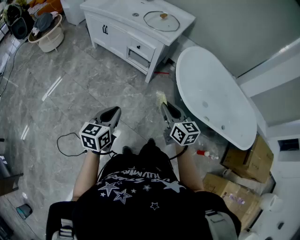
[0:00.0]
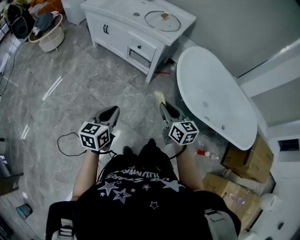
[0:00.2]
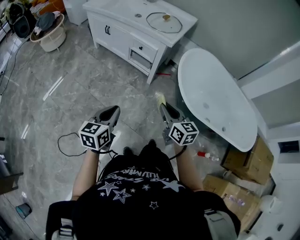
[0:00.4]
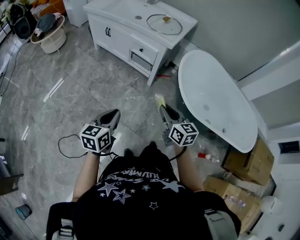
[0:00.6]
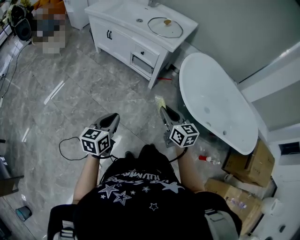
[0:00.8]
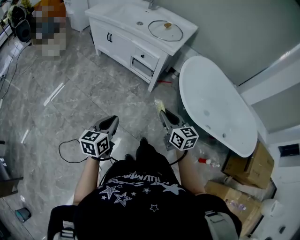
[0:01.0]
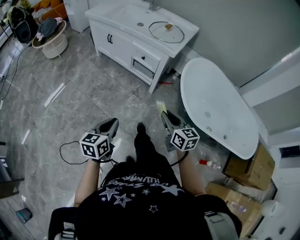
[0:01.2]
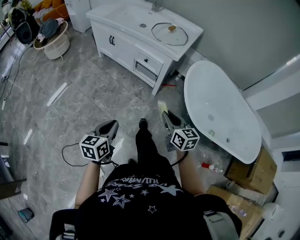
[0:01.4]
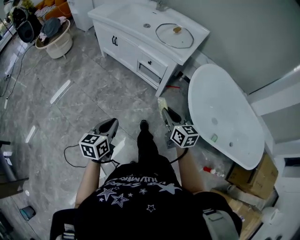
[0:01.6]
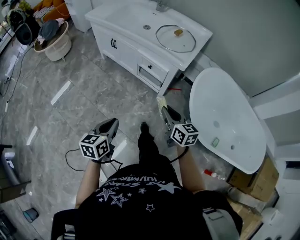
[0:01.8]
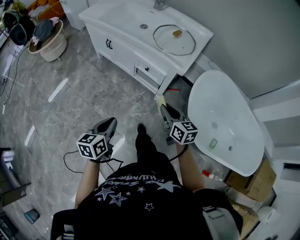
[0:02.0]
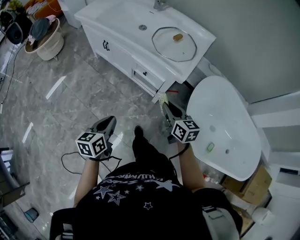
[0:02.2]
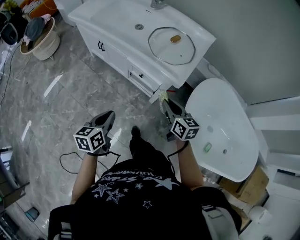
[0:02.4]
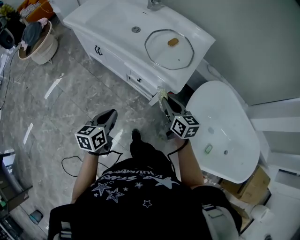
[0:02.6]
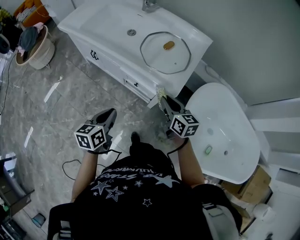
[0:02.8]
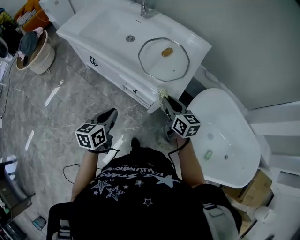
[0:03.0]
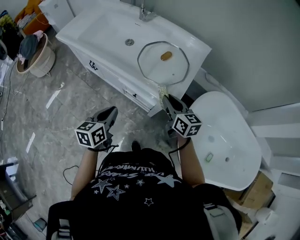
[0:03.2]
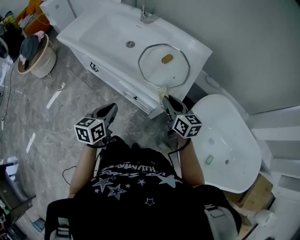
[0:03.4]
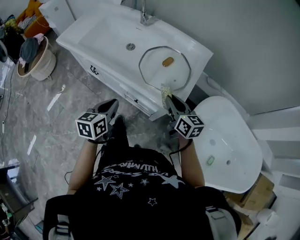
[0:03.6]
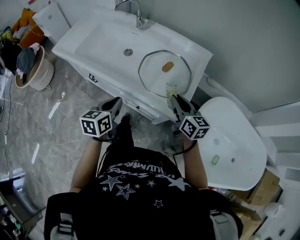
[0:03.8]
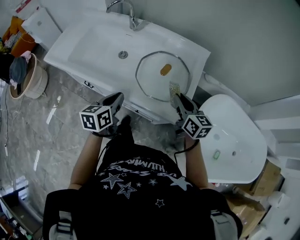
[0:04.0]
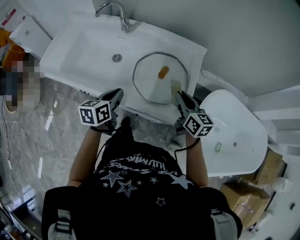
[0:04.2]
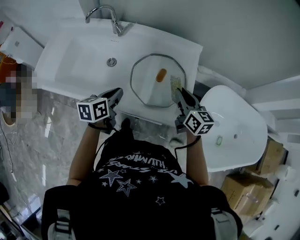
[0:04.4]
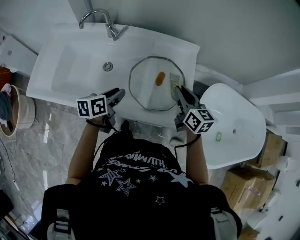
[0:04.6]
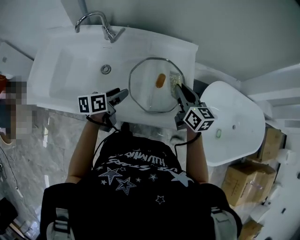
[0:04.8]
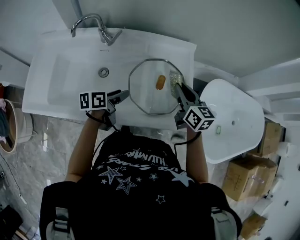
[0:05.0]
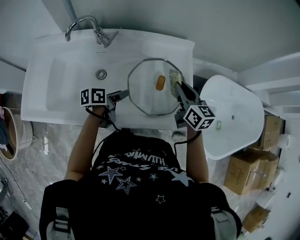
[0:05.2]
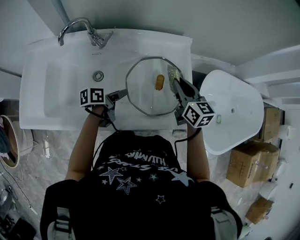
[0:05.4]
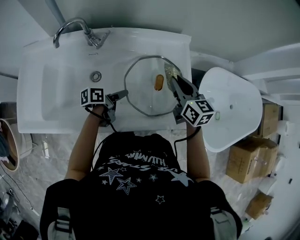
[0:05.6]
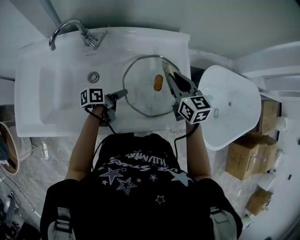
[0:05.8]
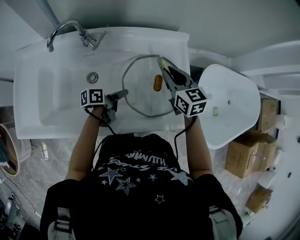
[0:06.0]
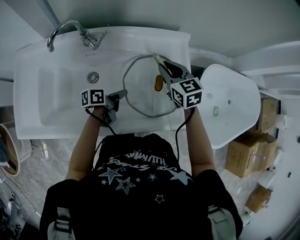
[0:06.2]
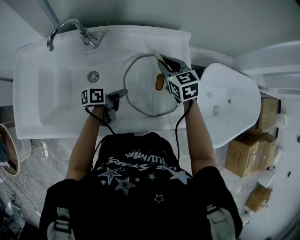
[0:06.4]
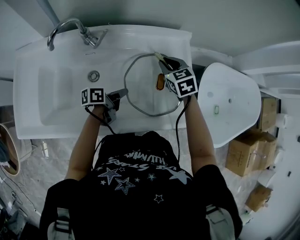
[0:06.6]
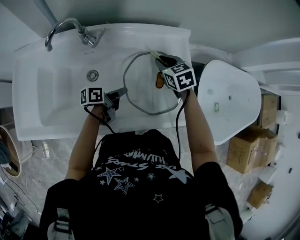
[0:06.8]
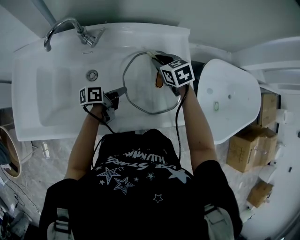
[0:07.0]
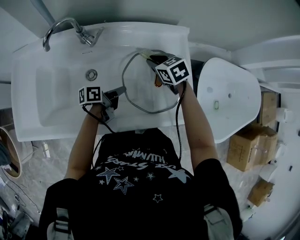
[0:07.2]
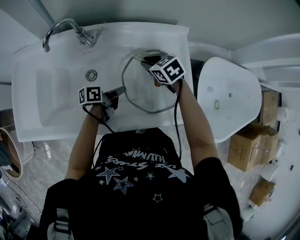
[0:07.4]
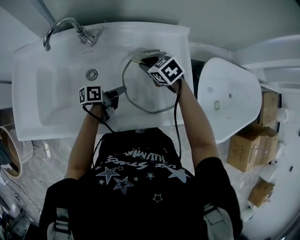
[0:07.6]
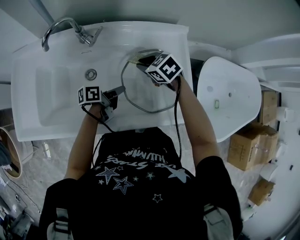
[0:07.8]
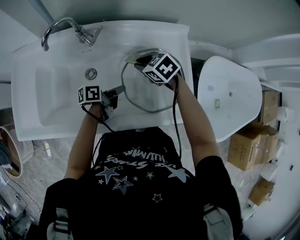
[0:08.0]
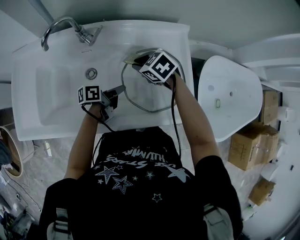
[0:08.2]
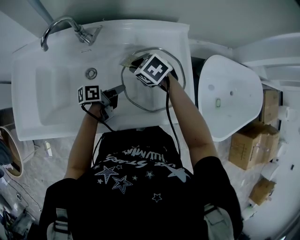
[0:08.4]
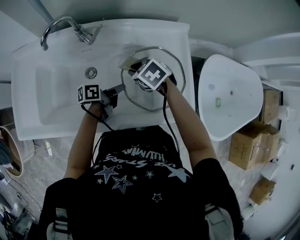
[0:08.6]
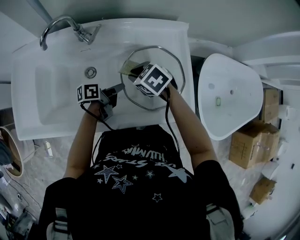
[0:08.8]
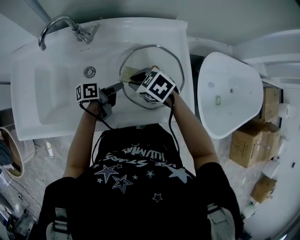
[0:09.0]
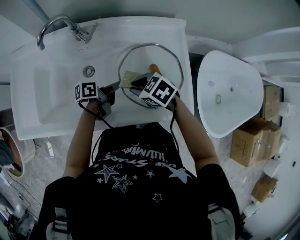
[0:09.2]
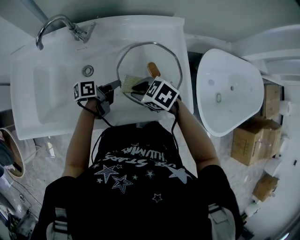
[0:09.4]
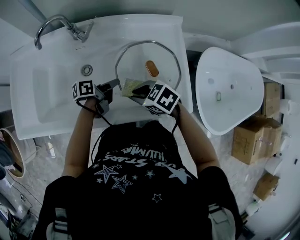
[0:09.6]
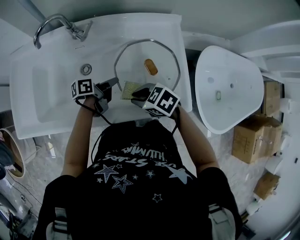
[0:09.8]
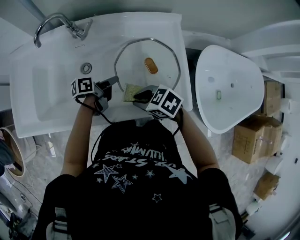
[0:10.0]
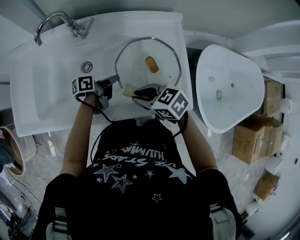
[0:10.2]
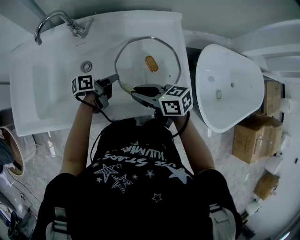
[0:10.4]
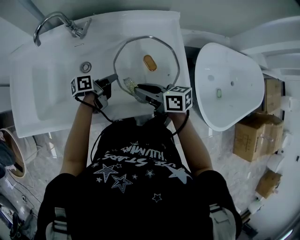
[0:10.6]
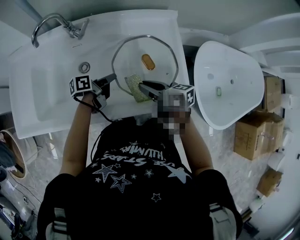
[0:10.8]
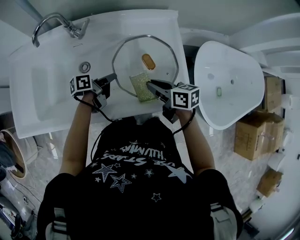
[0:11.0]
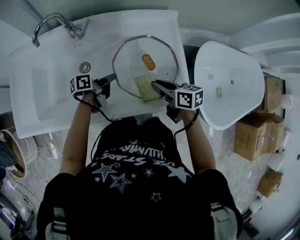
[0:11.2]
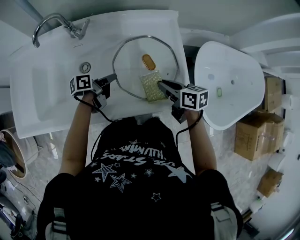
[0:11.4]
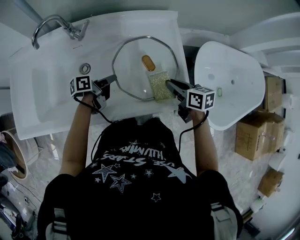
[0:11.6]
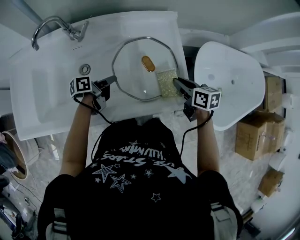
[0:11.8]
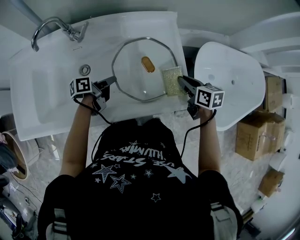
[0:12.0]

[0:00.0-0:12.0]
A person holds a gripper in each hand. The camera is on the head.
0:00.0 to 0:01.6: The left gripper goes roughly 15 cm forward and to the left. Meanwhile the right gripper heads forward, covering roughly 15 cm.
0:01.6 to 0:03.0: Both grippers move forward, some 40 cm.
0:03.0 to 0:04.4: The left gripper is displaced forward by approximately 30 cm, and rotates roughly 20 degrees. The right gripper shifts some 15 cm forward, and turns by about 20 degrees.
0:04.4 to 0:06.0: The right gripper heads forward and to the left, covering about 15 cm, and swivels approximately 20 degrees. Meanwhile the left gripper heads downward and forward, covering about 15 cm, swivels about 40 degrees, and opens its fingers.
0:06.0 to 0:07.6: The right gripper heads downward and to the left, covering roughly 10 cm, and changes its angle by roughly 40 degrees, while the left gripper closes up.
0:07.6 to 0:09.0: The right gripper moves roughly 10 cm.
0:09.0 to 0:10.4: The right gripper moves some 10 cm, and points its fingers about 30 degrees further upward.
0:10.4 to 0:12.0: The right gripper shifts by roughly 25 cm, and changes its angle by about 30 degrees.

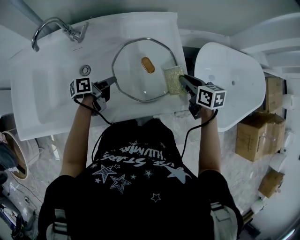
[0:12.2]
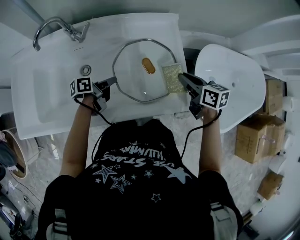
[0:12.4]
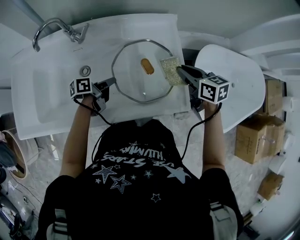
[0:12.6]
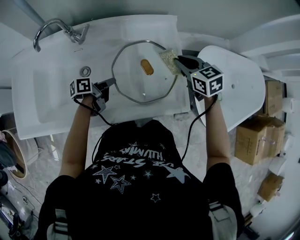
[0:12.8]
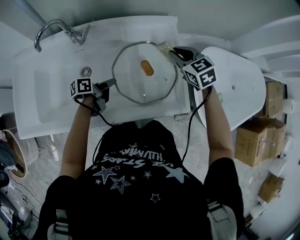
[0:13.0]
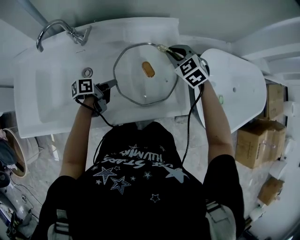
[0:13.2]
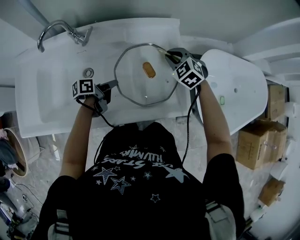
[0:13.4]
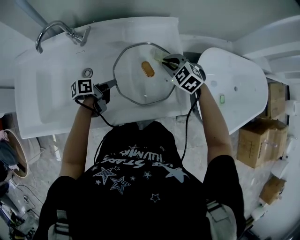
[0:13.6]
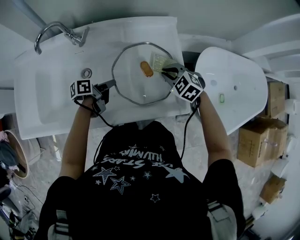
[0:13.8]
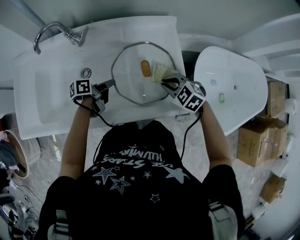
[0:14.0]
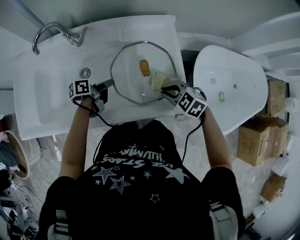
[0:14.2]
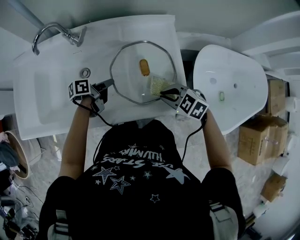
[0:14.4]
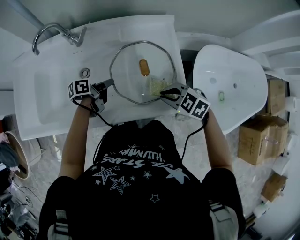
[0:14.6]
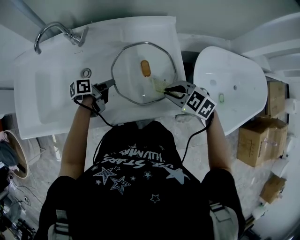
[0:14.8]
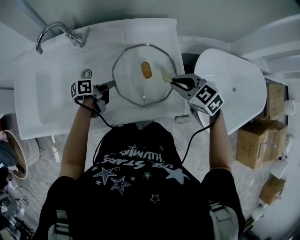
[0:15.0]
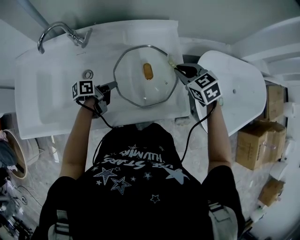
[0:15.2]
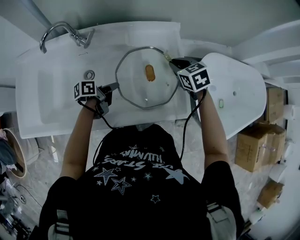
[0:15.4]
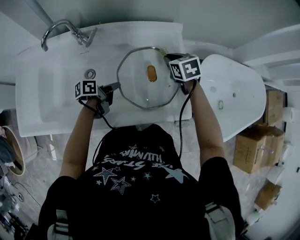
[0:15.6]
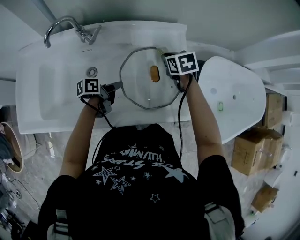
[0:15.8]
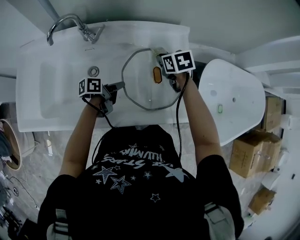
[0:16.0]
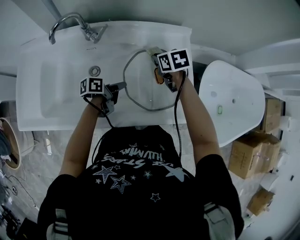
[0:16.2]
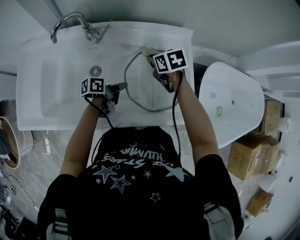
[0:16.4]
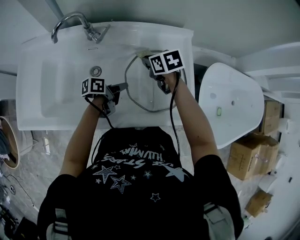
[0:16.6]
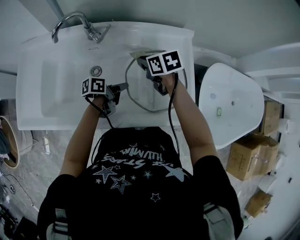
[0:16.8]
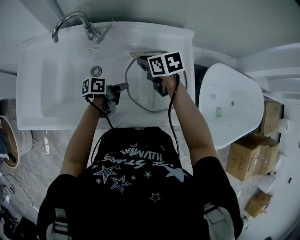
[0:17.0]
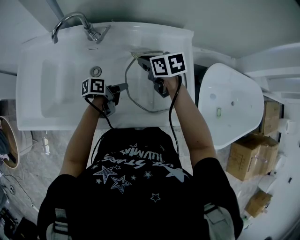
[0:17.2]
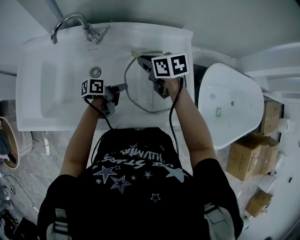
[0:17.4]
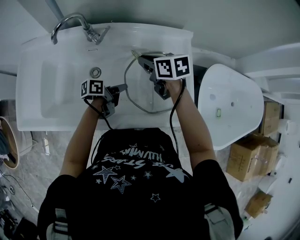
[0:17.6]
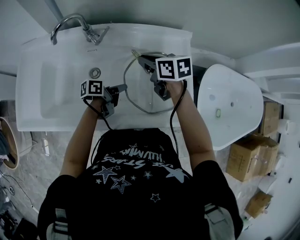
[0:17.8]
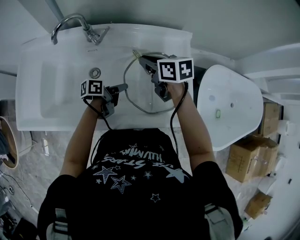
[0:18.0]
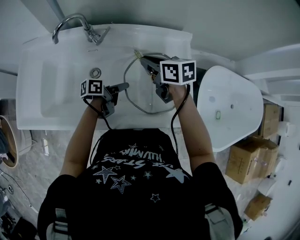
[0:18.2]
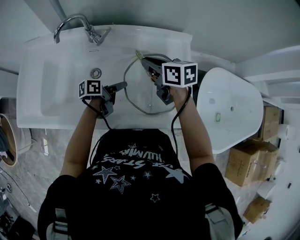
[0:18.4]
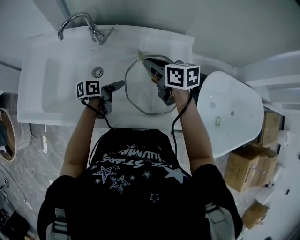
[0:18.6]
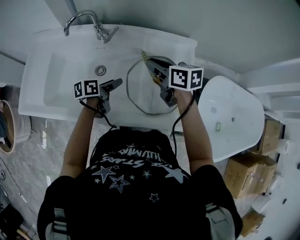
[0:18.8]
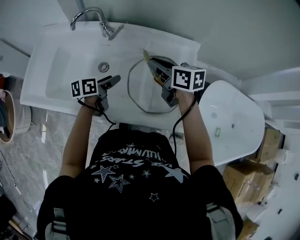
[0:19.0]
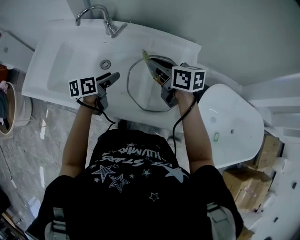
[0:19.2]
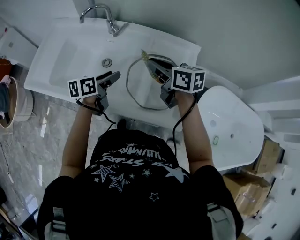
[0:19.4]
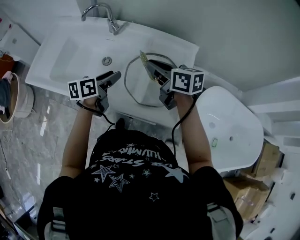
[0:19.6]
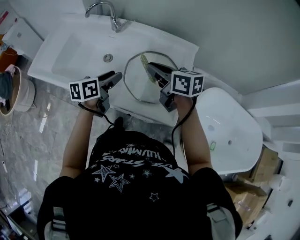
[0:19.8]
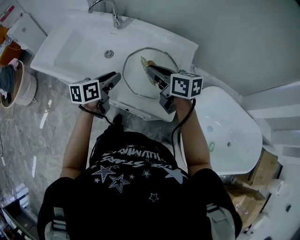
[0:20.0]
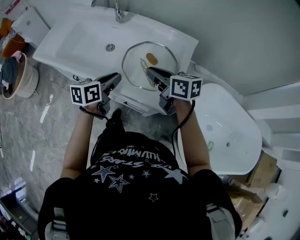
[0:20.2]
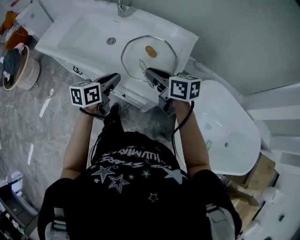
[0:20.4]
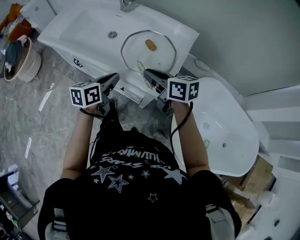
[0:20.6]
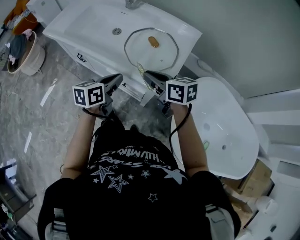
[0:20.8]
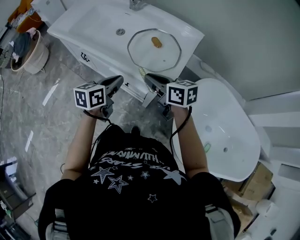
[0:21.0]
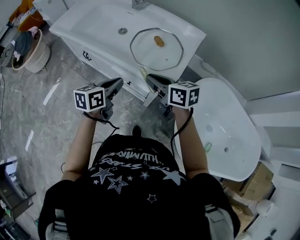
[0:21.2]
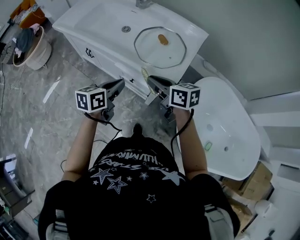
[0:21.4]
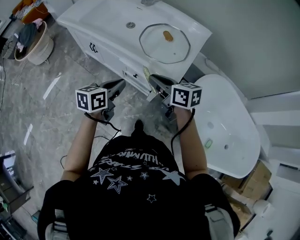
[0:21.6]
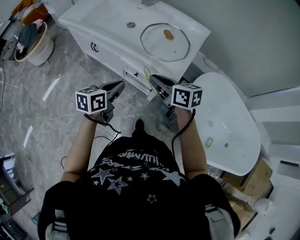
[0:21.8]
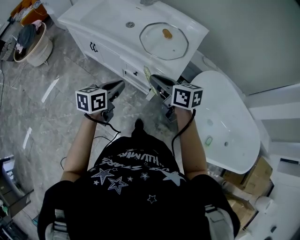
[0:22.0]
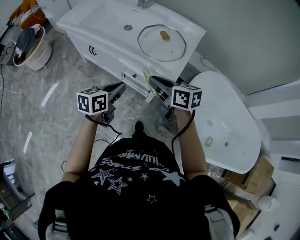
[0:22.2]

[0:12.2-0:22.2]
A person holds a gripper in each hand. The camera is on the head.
0:12.2 to 0:13.6: The right gripper travels to the left and forward by roughly 10 cm, and twists roughly 60 degrees counterclockwise, seen from behind.
0:13.6 to 0:15.0: The right gripper changes place by approximately 10 cm.
0:15.0 to 0:16.4: The right gripper shifts approximately 20 cm to the left and forward, and swivels approximately 30 degrees.
0:16.4 to 0:18.0: The right gripper travels upward by some 5 cm, and swivels roughly 20 degrees.
0:18.0 to 0:19.4: The right gripper shifts some 10 cm upward and backward, while the left gripper travels upward and to the left by roughly 10 cm, turns by some 40 degrees, and opens its fingers.
0:19.4 to 0:20.8: Both grippers move backward, some 25 cm. The left gripper closes.
0:20.8 to 0:22.2: Both grippers travel together backward and to the left, some 15 cm.

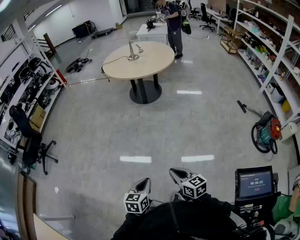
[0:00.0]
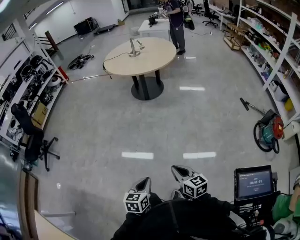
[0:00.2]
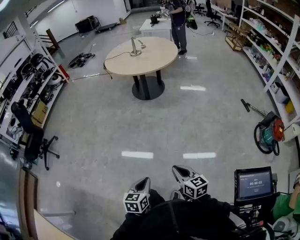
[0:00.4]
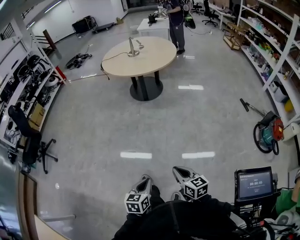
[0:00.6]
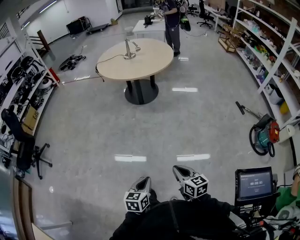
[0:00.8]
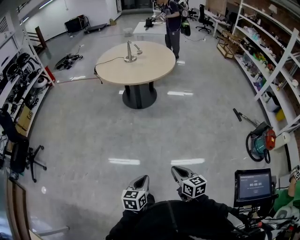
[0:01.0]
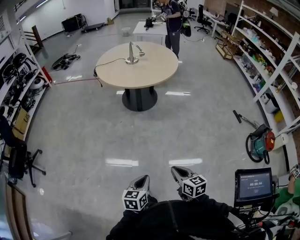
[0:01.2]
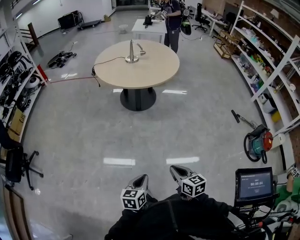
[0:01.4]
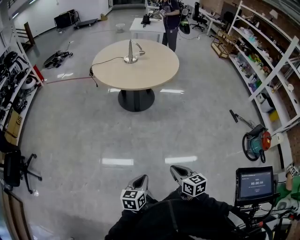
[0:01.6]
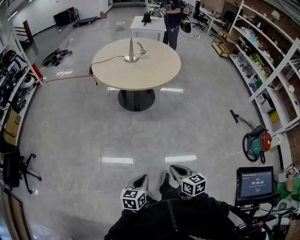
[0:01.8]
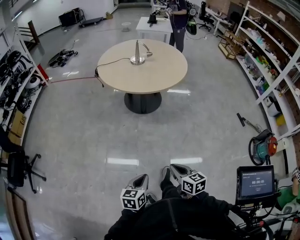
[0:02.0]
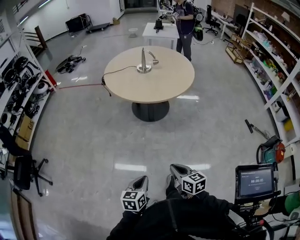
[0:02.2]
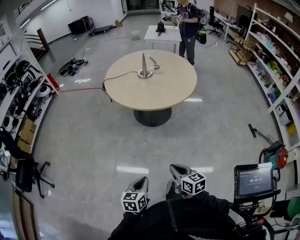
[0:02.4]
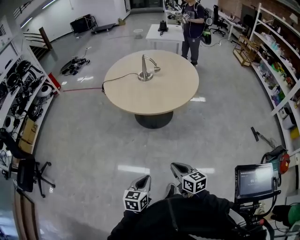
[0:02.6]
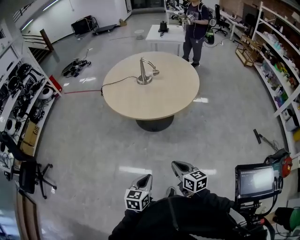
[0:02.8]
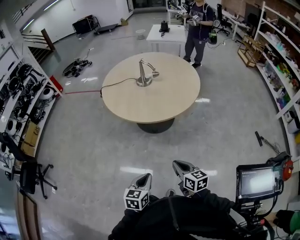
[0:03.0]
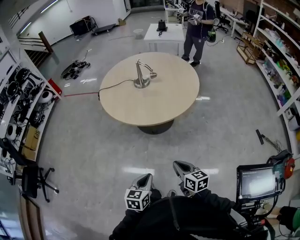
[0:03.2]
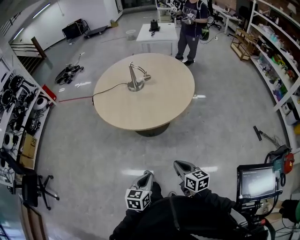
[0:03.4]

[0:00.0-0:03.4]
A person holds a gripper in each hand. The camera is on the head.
0:00.0 to 0:01.6: Both grippers travel together forward, some 30 cm.
0:01.6 to 0:03.4: Both grippers move forward, some 40 cm.
